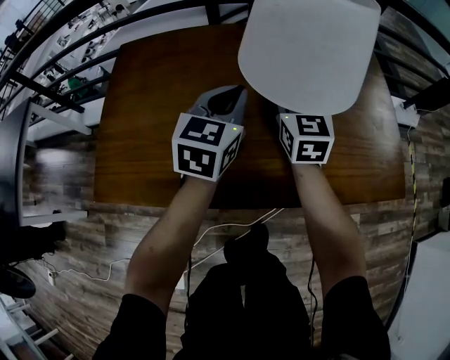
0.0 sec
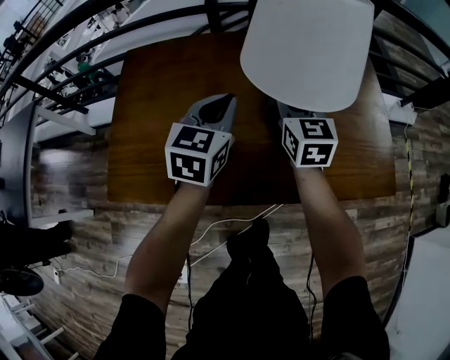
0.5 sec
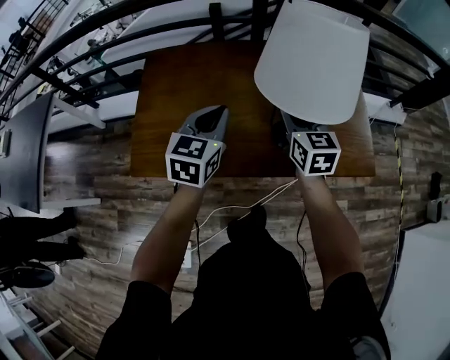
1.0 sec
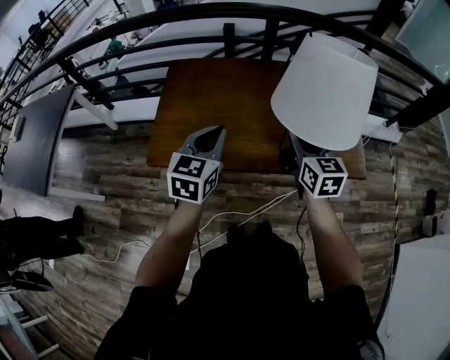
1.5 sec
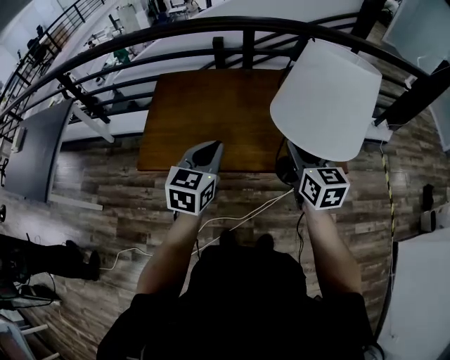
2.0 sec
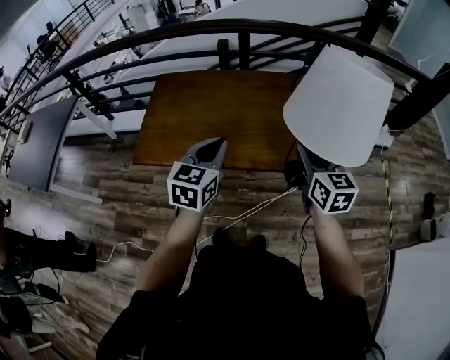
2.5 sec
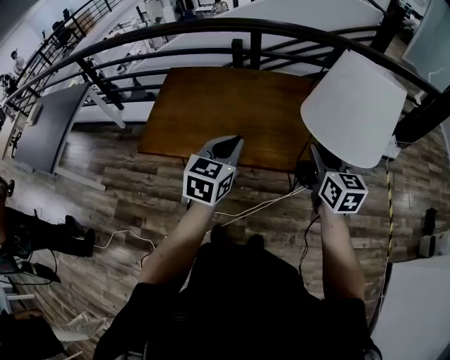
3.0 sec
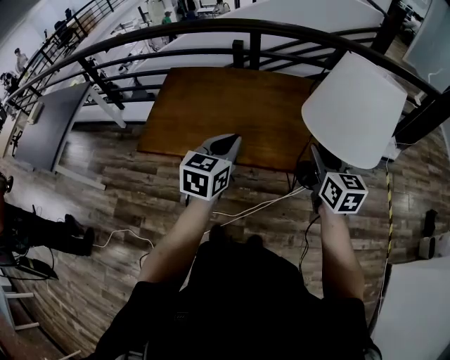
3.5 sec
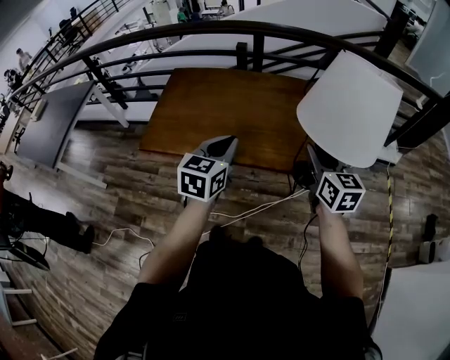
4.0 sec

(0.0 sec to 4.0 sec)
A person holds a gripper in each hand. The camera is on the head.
0.0 sec - 2.0 sec: The two grippers go roughly 40 cm backward and upward.
2.0 sec - 4.0 sec: The two grippers go roughly 15 cm to the right.

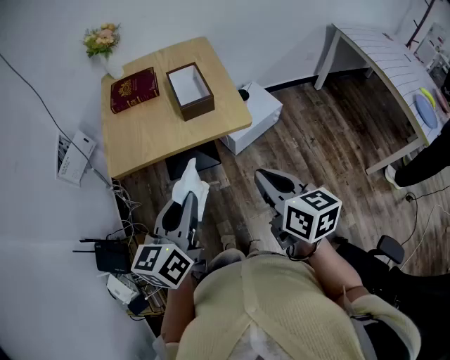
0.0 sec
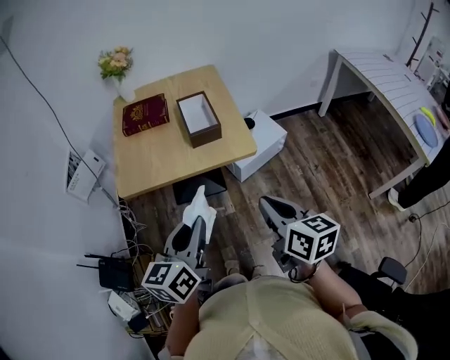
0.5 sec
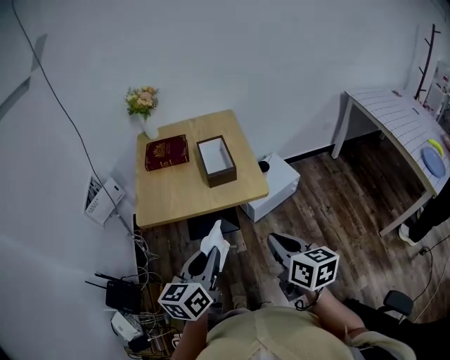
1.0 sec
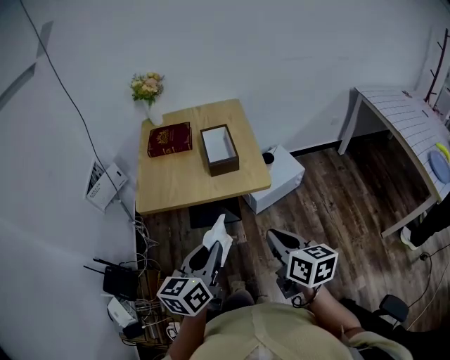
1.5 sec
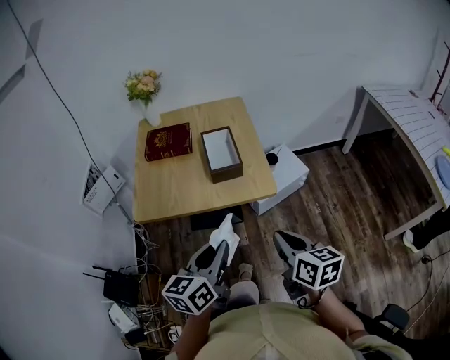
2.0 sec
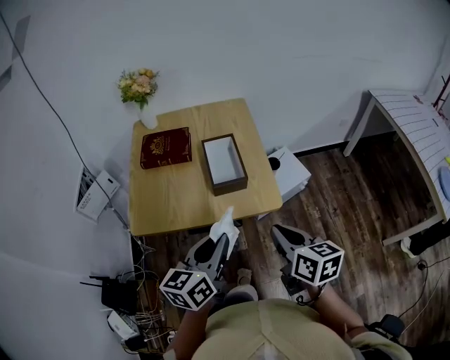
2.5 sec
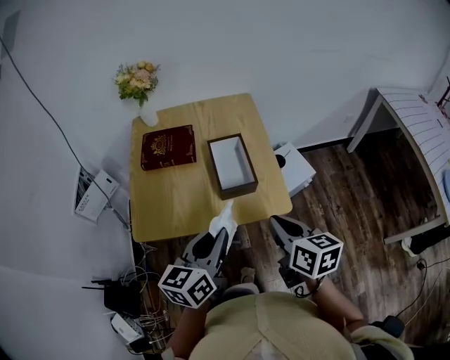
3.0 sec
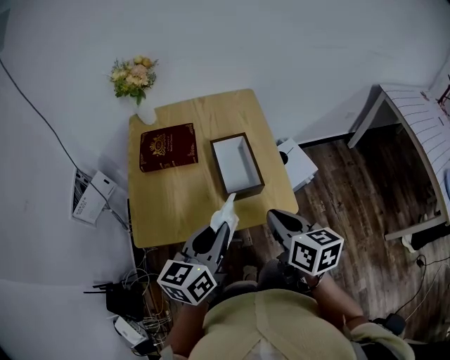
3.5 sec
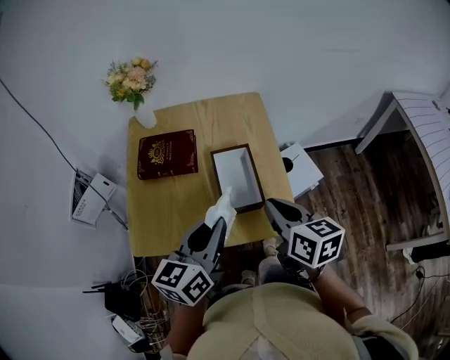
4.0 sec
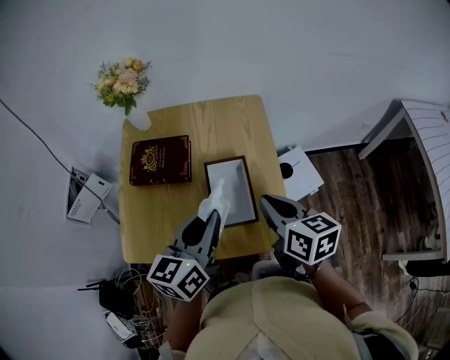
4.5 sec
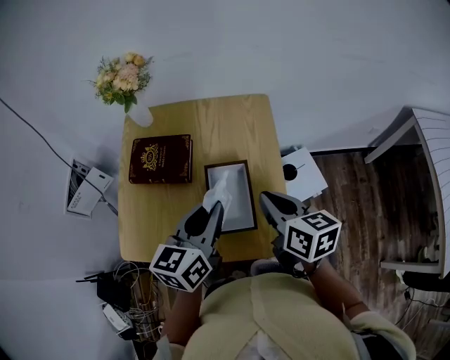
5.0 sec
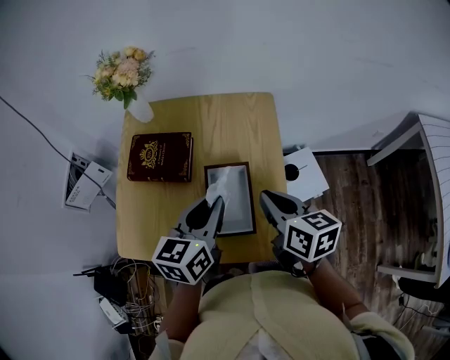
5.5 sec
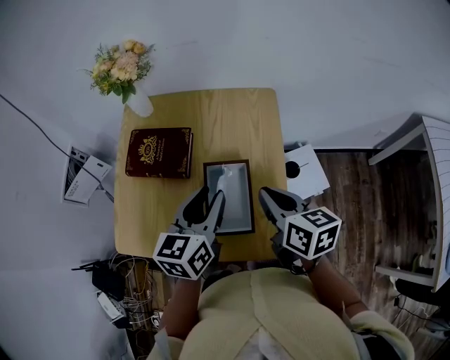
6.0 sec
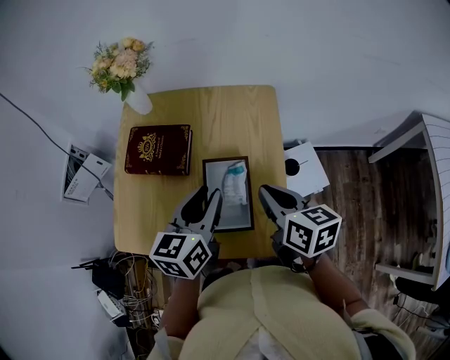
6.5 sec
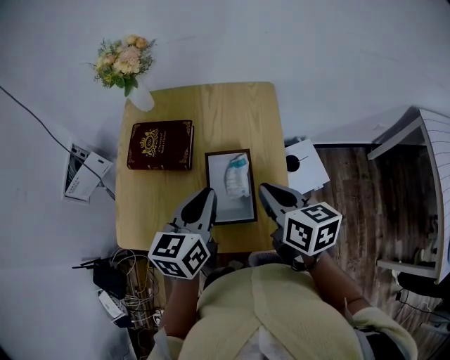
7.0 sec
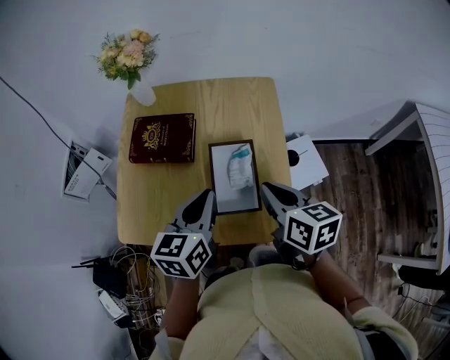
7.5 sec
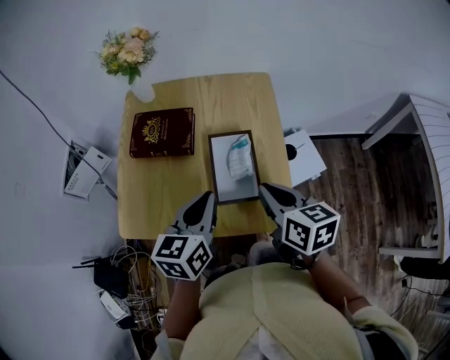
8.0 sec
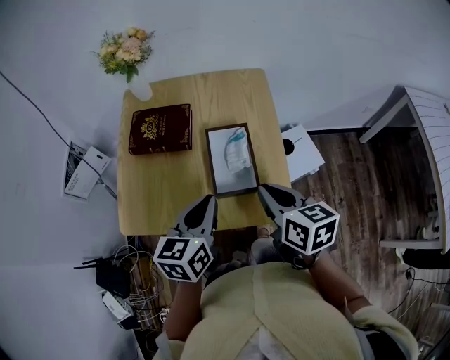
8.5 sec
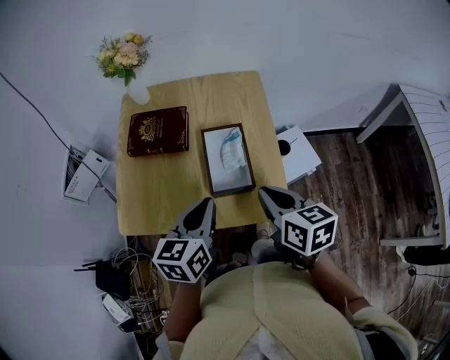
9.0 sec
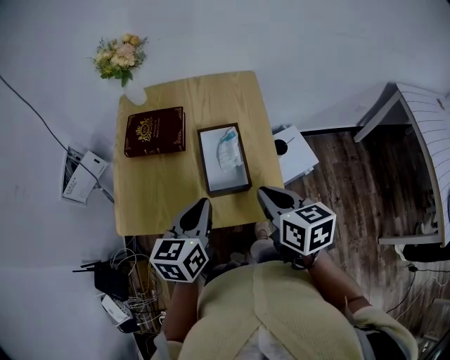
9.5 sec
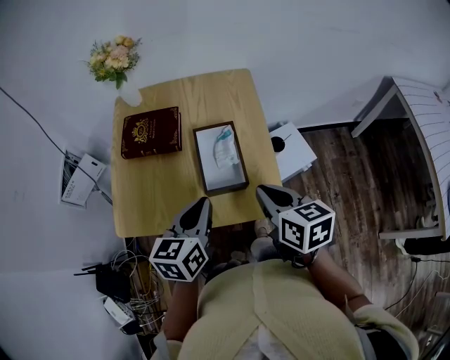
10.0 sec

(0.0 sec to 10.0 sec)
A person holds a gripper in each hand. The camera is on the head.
0.0 sec - 2.0 sec: The left gripper shifts by about 5 cm. The right gripper changes place by approximately 5 cm.
2.0 sec - 4.0 sec: The two grippers go about 25 cm forward.
4.0 sec - 6.0 sec: Both grippers move forward, roughly 10 cm.
6.0 sec - 8.0 sec: Both grippers move backward, about 10 cm. The left gripper closes its fingers.
8.0 sec - 10.0 sec: The right gripper shifts by about 5 cm.

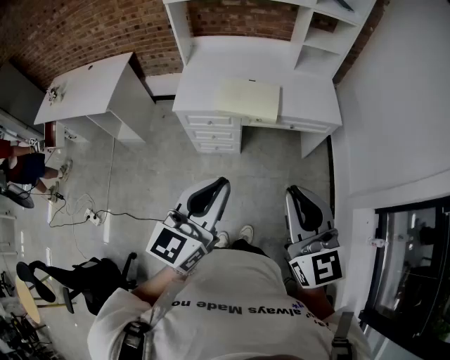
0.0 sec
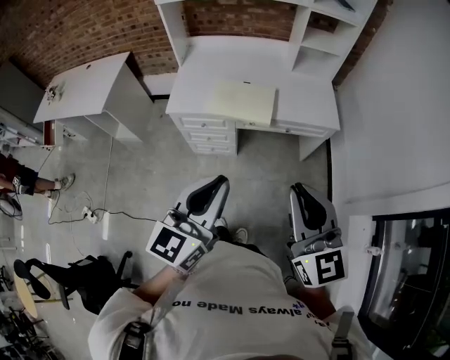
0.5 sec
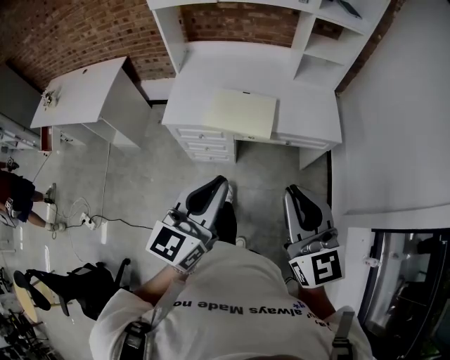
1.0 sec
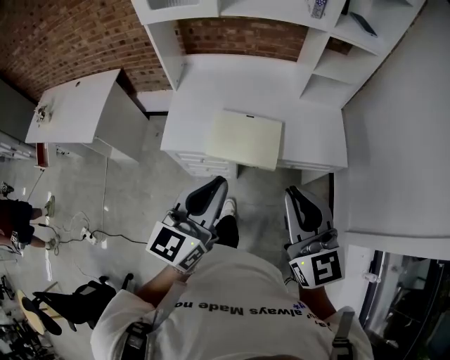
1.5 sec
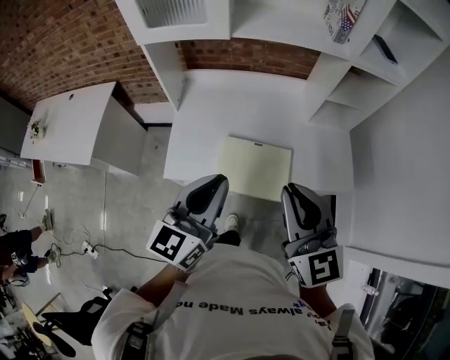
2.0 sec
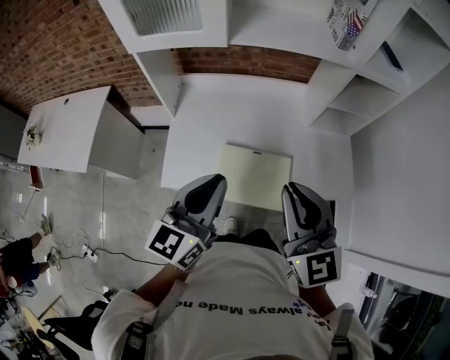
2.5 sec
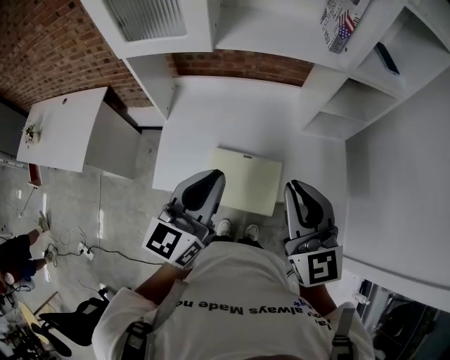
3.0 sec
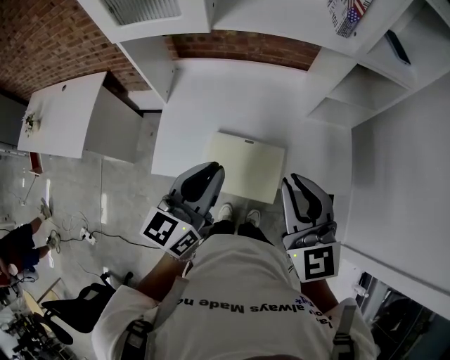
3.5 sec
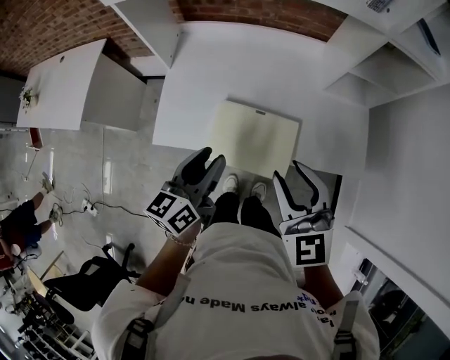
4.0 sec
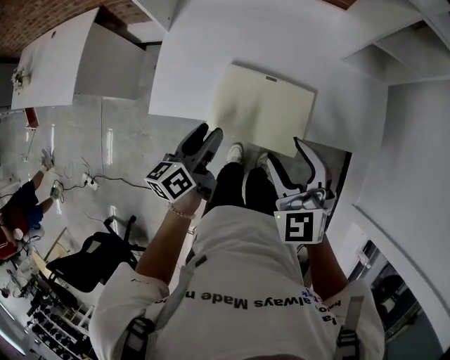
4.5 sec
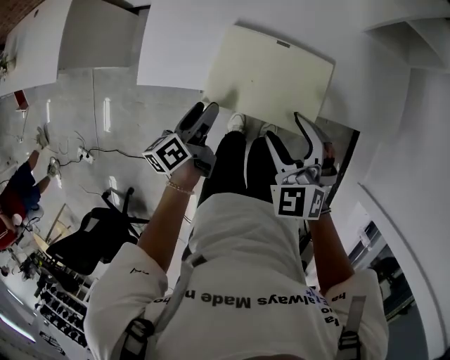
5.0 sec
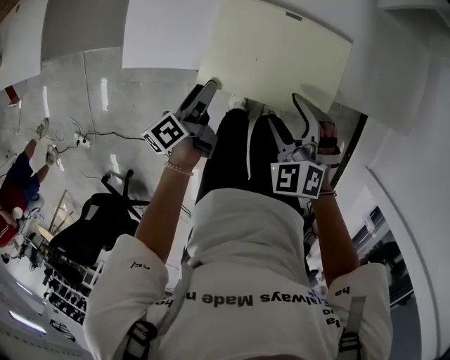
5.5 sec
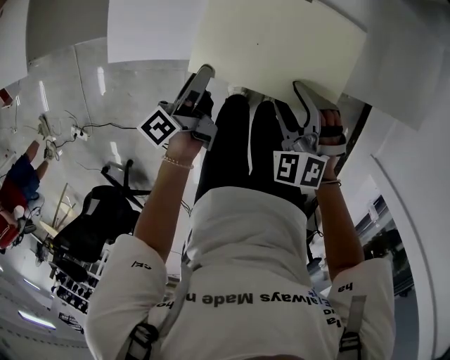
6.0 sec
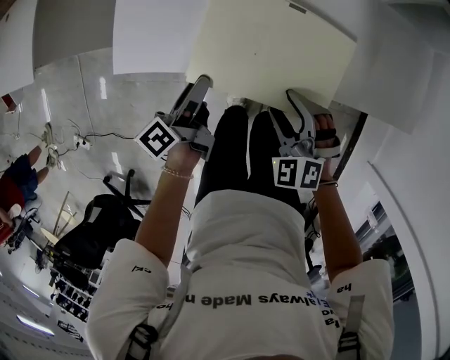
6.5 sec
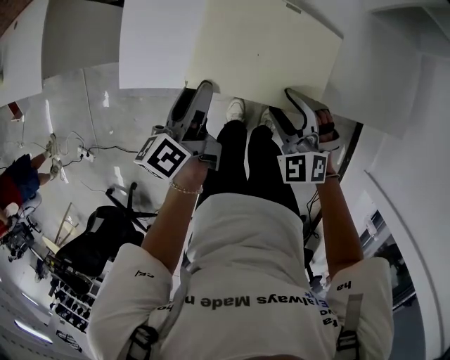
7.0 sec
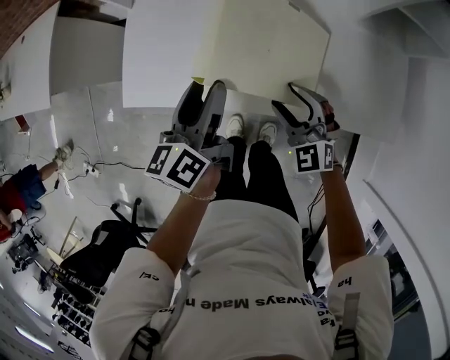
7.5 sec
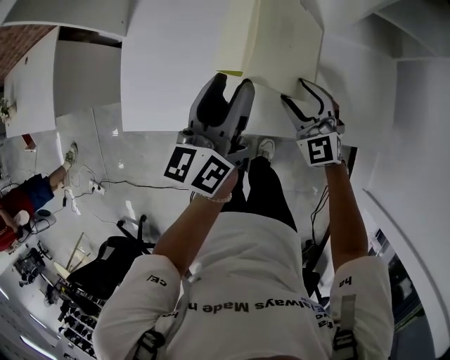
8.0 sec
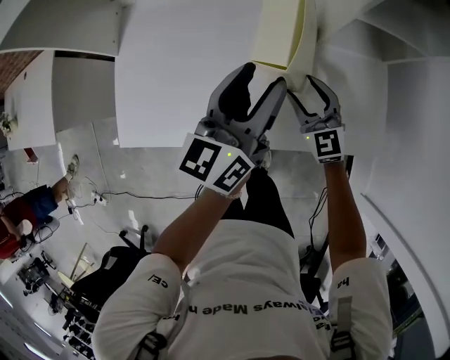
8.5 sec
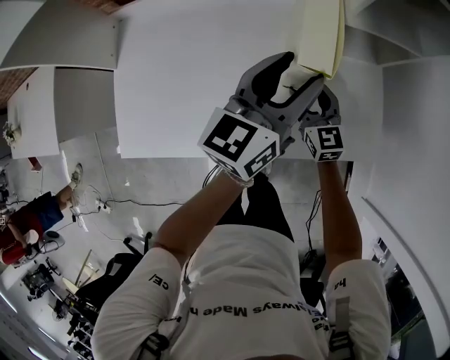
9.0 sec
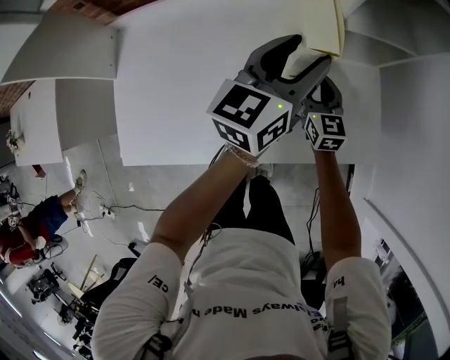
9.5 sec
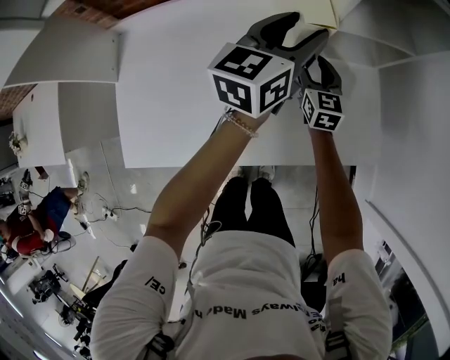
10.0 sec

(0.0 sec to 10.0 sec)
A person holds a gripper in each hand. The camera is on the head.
0.0 sec - 2.0 sec: The two grippers travel together, forward, approximately 40 cm.
2.0 sec - 4.0 sec: The right gripper shifts approximately 15 cm downward and forward, changes its angle by some 20 degrees, and opens up. The left gripper goes some 15 cm downward, swivels approximately 20 degrees, and opens.
4.0 sec - 6.0 sec: The two grippers go some 30 cm downward. The right gripper changes its angle by about 40 degrees, and opens its fingers; the left gripper rolls counterclockwise, seen from behind, by some 50 degrees, and opens.
6.0 sec - 8.0 sec: The right gripper shifts approximately 20 cm forward and to the right, and rotates about 30 degrees. The left gripper moves upward, to the right and forward, some 30 cm, and twists about 40 degrees clockwise, seen from behind.
8.0 sec - 10.0 sec: The right gripper changes place by some 25 cm, and rotates about 50 degrees; the left gripper shifts by about 30 cm, and rotates some 30 degrees.

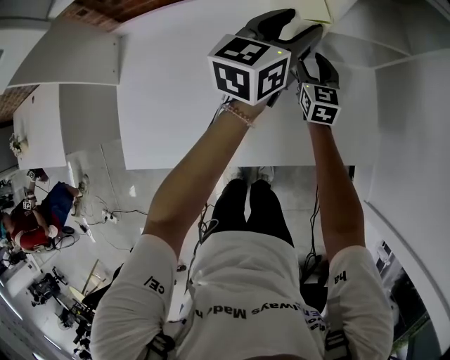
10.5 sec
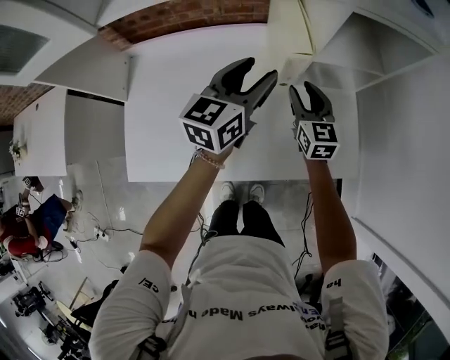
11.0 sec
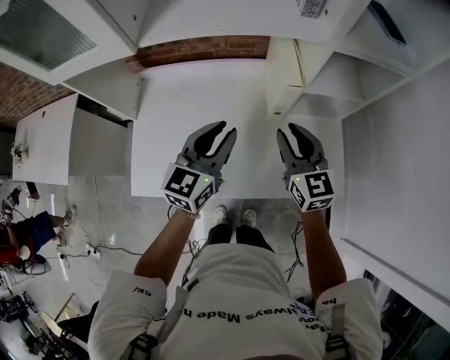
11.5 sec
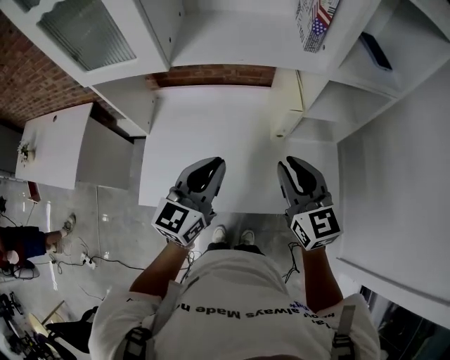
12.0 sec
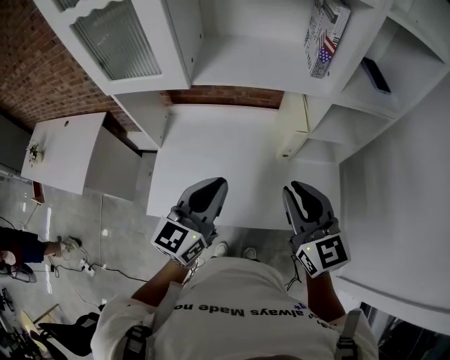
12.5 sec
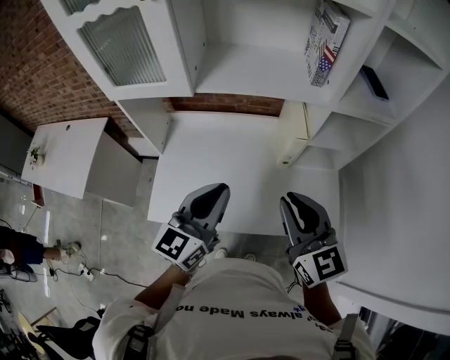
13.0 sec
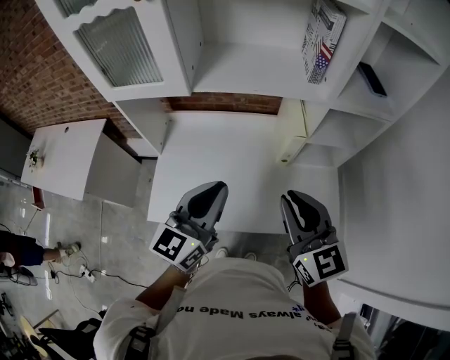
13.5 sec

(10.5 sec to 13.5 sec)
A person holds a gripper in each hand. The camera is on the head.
10.5 sec - 12.0 sec: The right gripper heads upward and backward, covering roughly 40 cm, changes its angle by some 20 degrees, and closes its fingers. Meanwhile the left gripper goes some 35 cm backward, to the left and upward, and closes.
12.0 sec - 13.5 sec: The right gripper is displaced upward and backward by roughly 10 cm, while the left gripper shifts some 5 cm upward.
